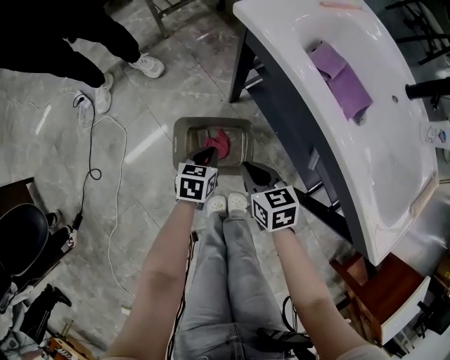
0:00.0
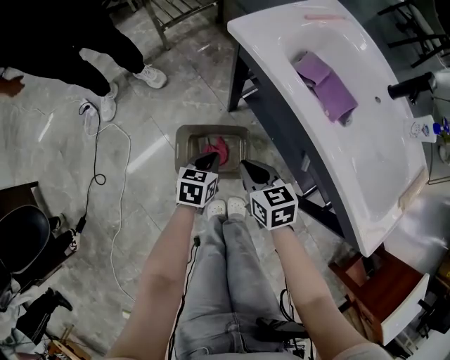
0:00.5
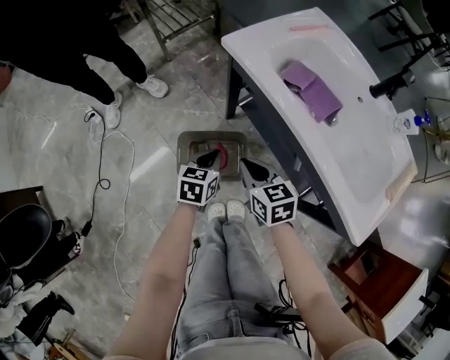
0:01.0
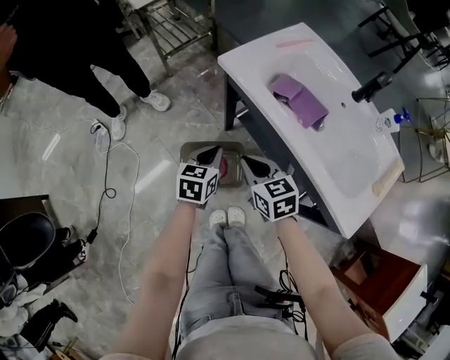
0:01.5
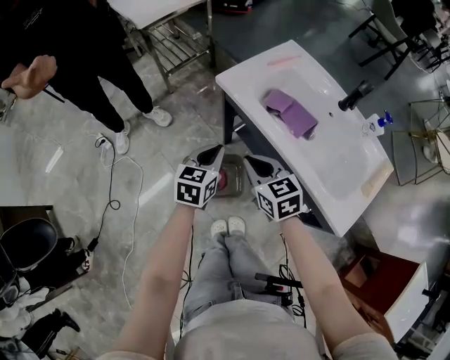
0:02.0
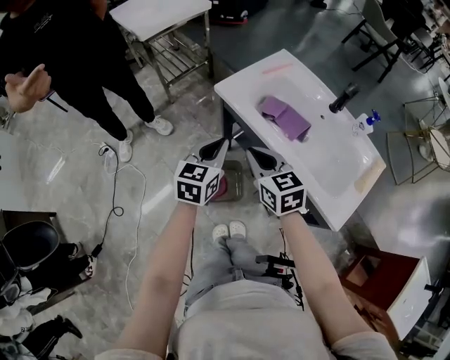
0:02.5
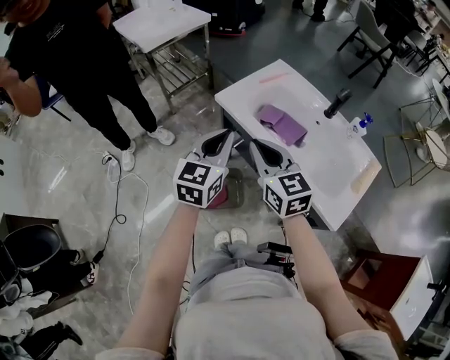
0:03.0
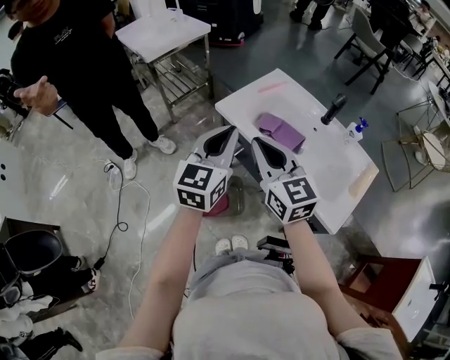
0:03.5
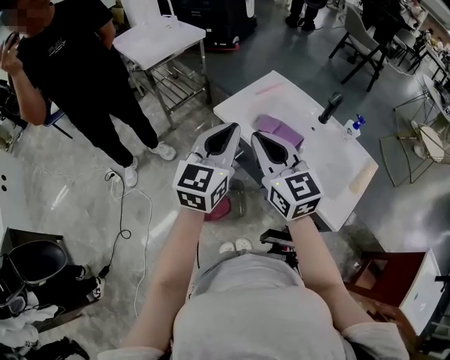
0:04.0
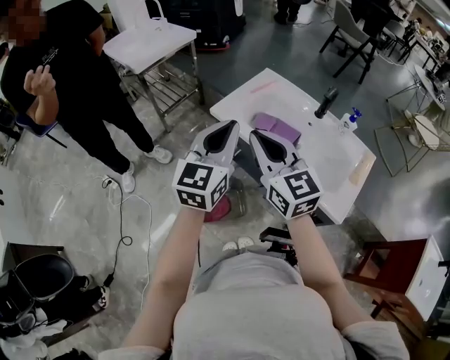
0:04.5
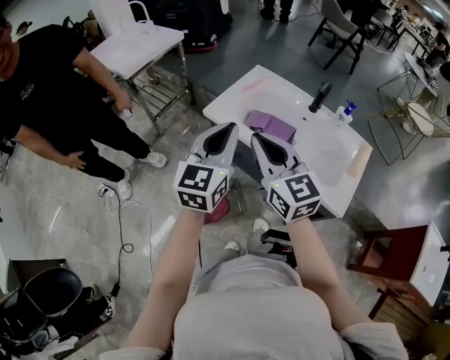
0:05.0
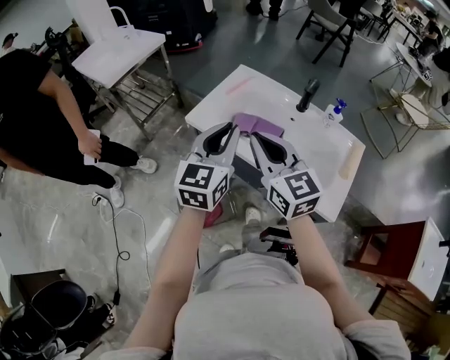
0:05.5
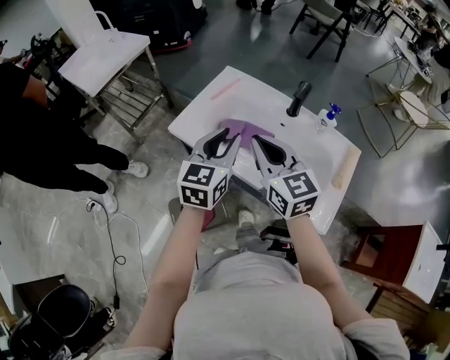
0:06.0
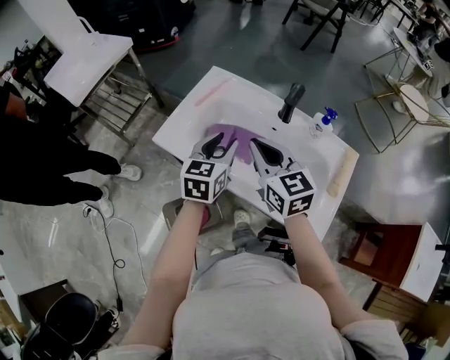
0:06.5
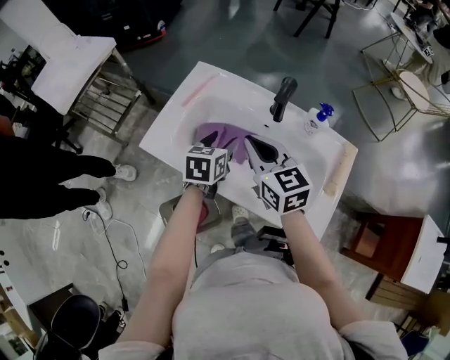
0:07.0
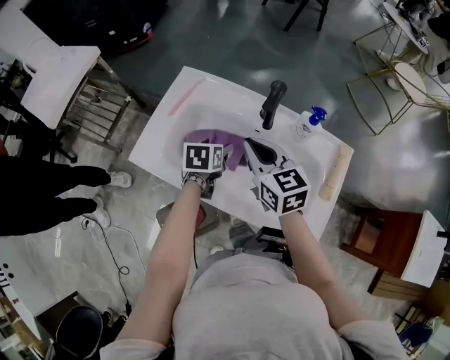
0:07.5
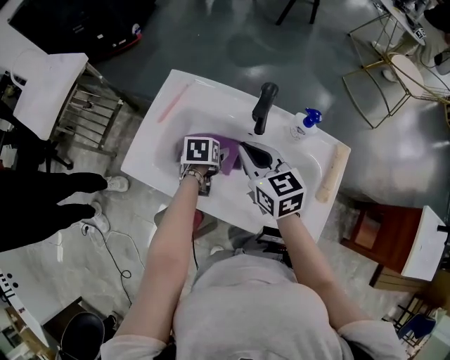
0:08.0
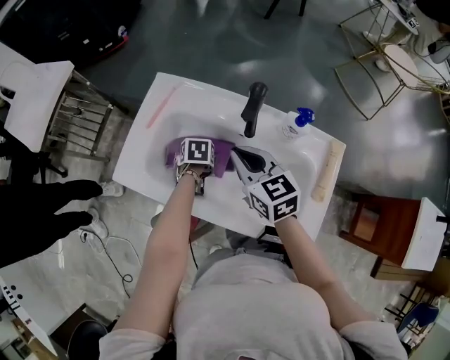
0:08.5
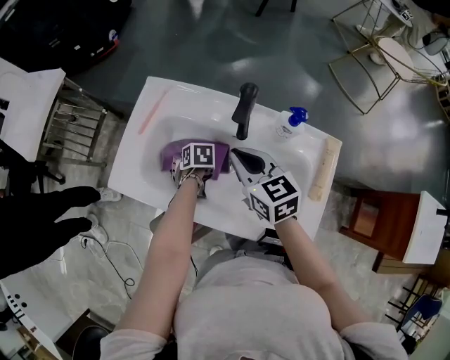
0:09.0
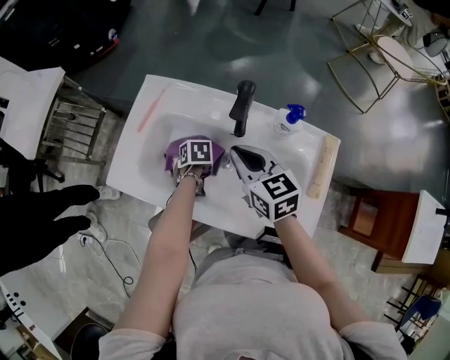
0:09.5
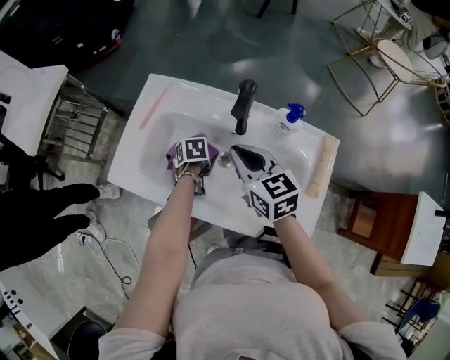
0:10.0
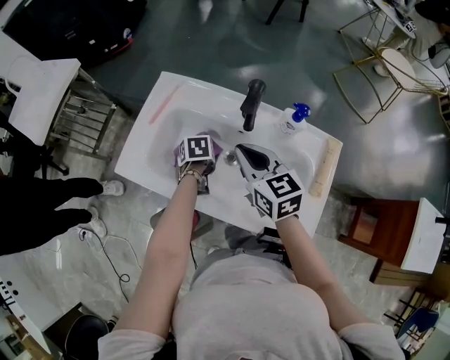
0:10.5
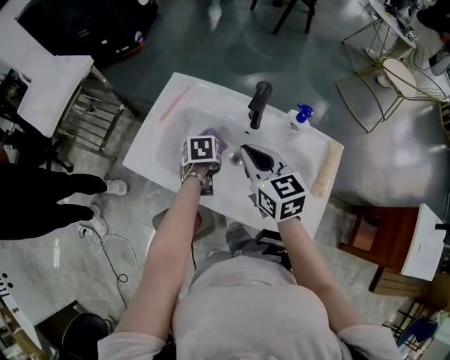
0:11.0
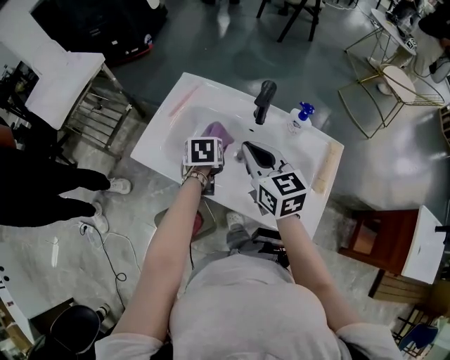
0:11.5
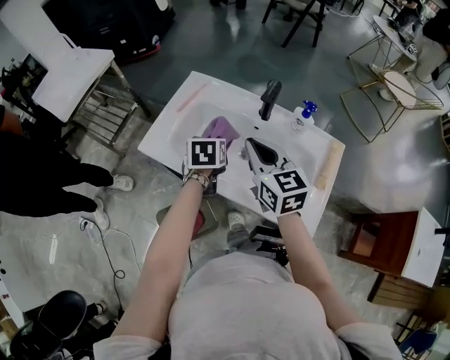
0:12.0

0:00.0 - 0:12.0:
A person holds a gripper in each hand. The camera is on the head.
0:00.0 - 0:02.0: Both grippers travel together upward, some 30 cm. The left gripper changes its angle by approximately 20 degrees.
0:02.0 - 0:04.0: The grippers both shift upward by approximately 25 cm. The left gripper rotates about 30 degrees; the right gripper rotates some 30 degrees.
0:04.0 - 0:06.0: The two grippers go approximately 15 cm to the right, forward and downward.
0:06.0 - 0:08.0: The right gripper heads forward, downward and to the right, covering roughly 20 cm; the left gripper goes roughly 30 cm downward and forward, points its fingers approximately 50 degrees further downward, and opens its fingers.
0:08.0 - 0:10.0: The left gripper heads downward, covering approximately 5 cm, and closes up.
0:10.0 - 0:12.0: The right gripper goes some 10 cm upward. The left gripper is displaced upward by some 20 cm, and changes its angle by approximately 30 degrees.

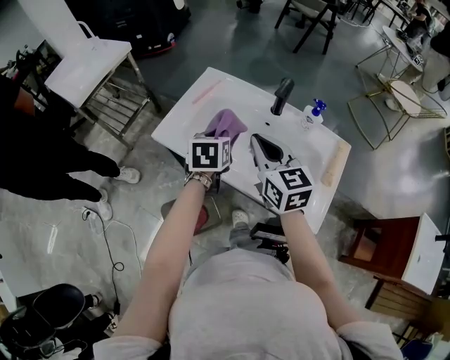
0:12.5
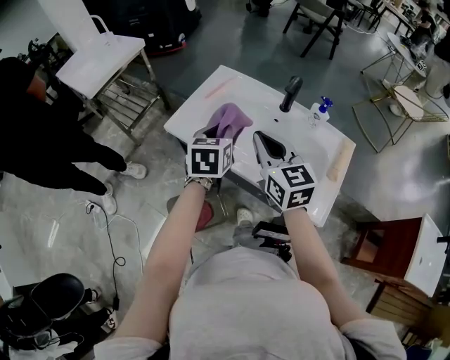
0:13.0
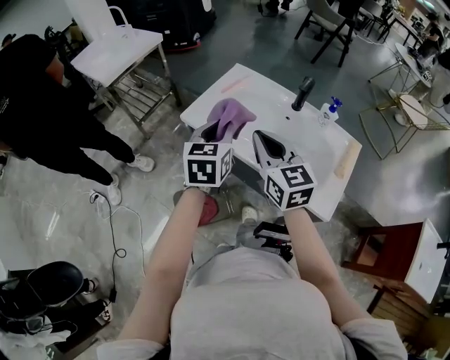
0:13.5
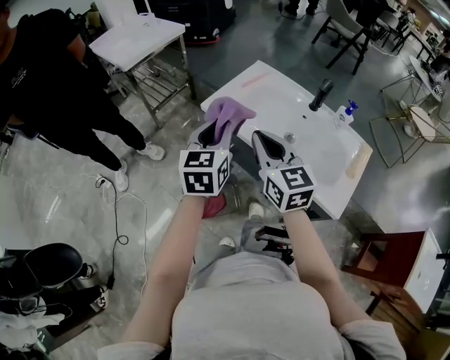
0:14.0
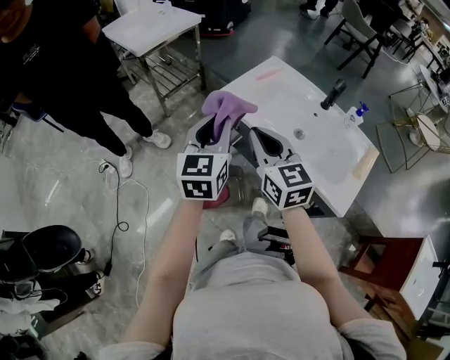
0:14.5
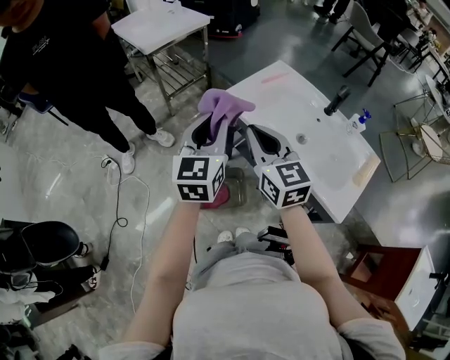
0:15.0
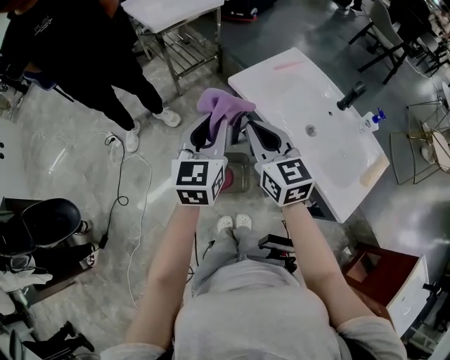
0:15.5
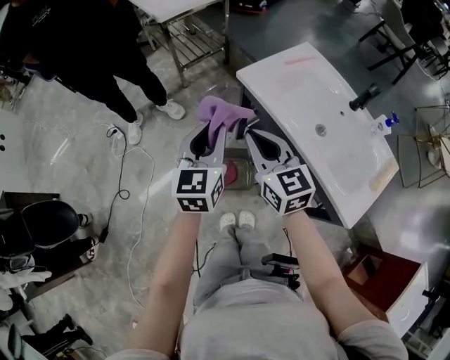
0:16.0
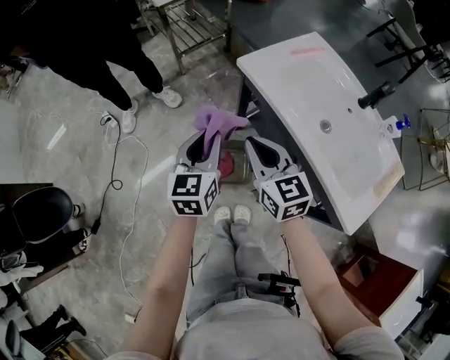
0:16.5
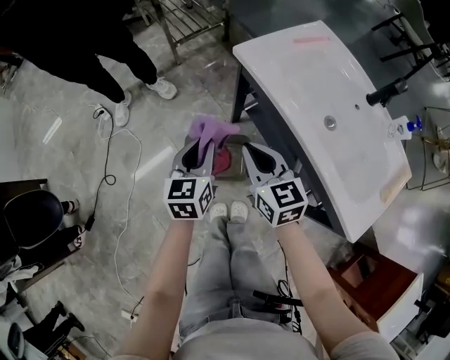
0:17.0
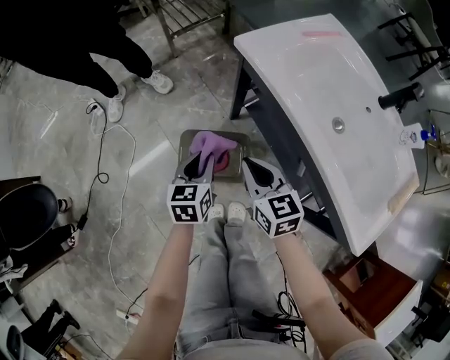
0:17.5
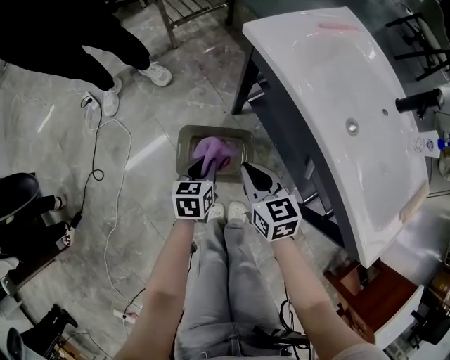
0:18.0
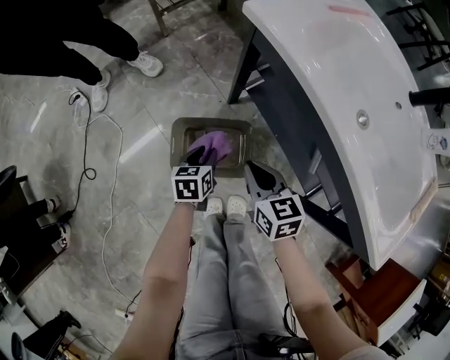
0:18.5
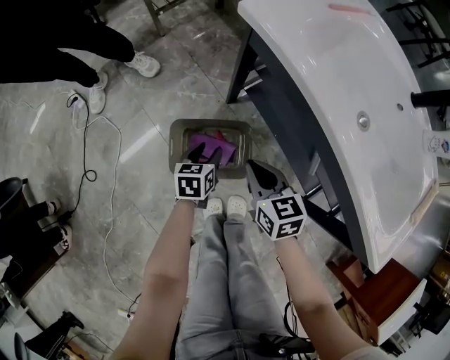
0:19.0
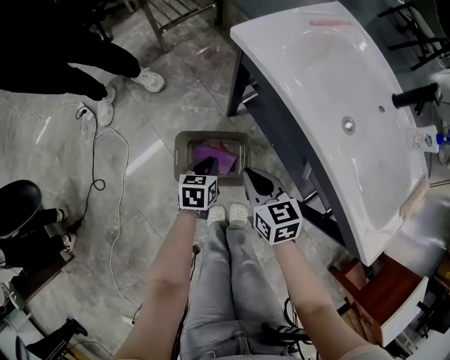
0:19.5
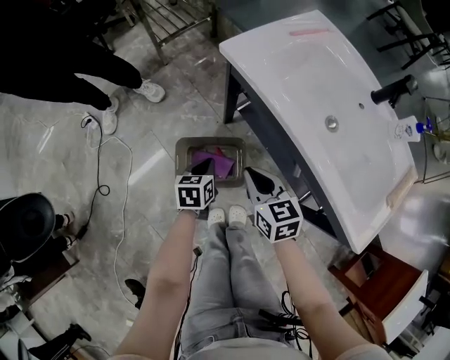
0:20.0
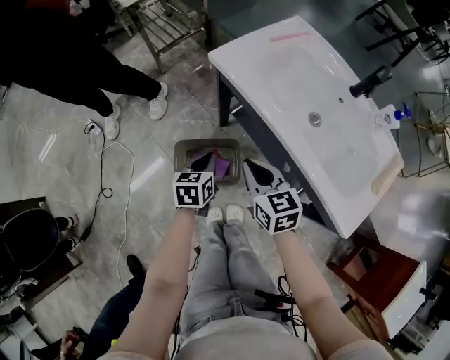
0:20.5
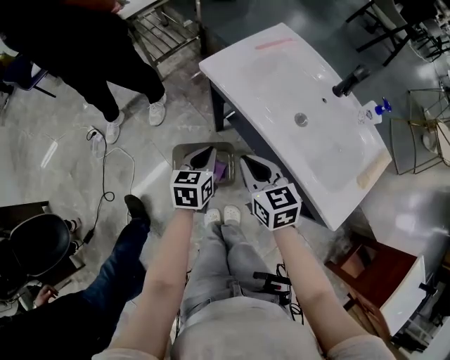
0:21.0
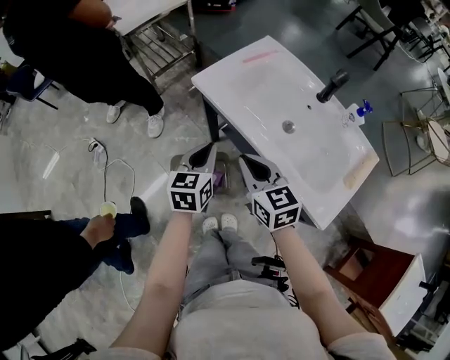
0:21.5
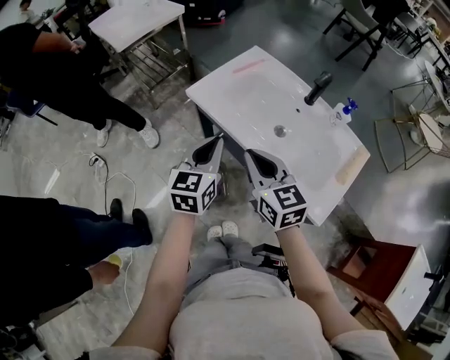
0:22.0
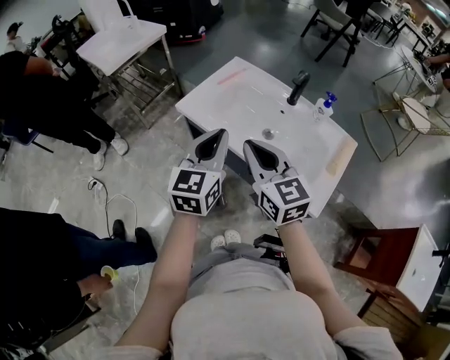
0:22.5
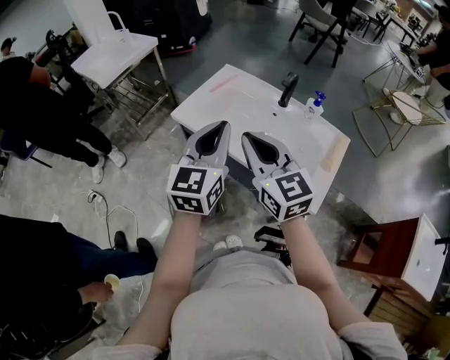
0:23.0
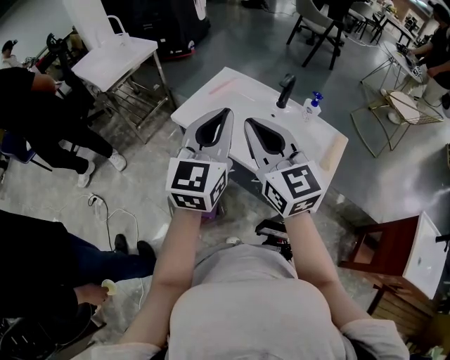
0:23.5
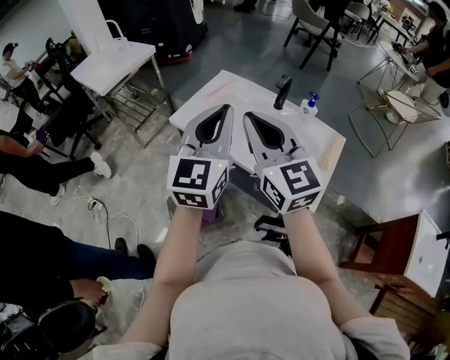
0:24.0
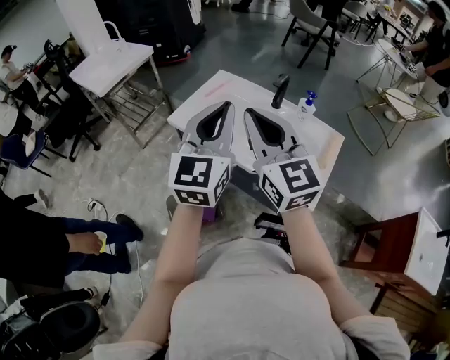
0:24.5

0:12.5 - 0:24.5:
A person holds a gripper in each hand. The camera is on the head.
0:12.5 - 0:14.5: The left gripper moves to the left, backward and upward, roughly 30 cm, and points its fingers about 30 degrees further upward. The right gripper travels to the left and backward by approximately 25 cm.
0:14.5 - 0:16.5: The grippers both shift downward by approximately 15 cm.
0:16.5 - 0:18.5: Both grippers travel together downward, about 35 cm. The right gripper turns by approximately 20 degrees; the left gripper turns by about 30 degrees.
0:18.5 - 0:20.5: Both grippers move upward, approximately 20 cm.
0:20.5 - 0:22.5: Both grippers move upward, approximately 30 cm. The right gripper swivels roughly 20 degrees; the left gripper tilts its fingers about 30 degrees upward.
0:22.5 - 0:24.5: The two grippers go some 15 cm upward.

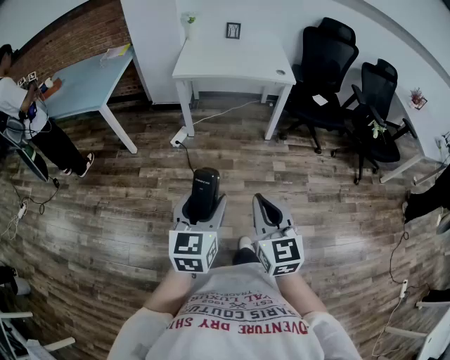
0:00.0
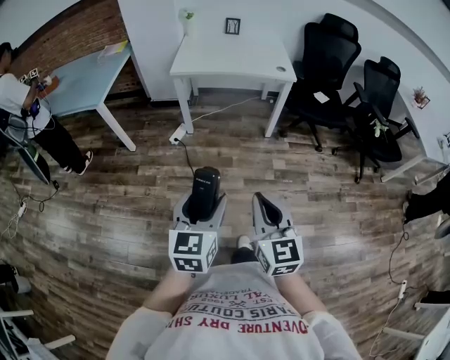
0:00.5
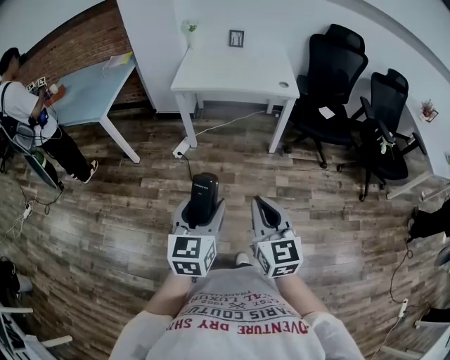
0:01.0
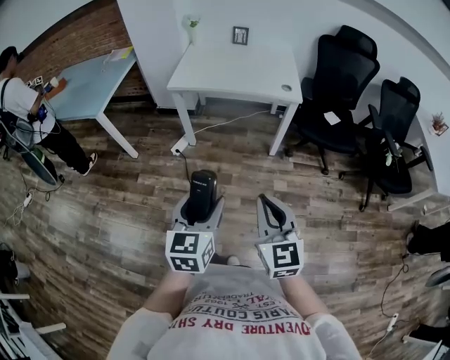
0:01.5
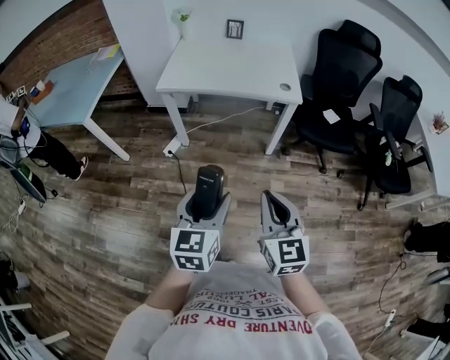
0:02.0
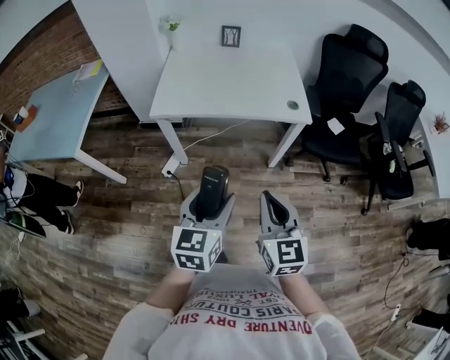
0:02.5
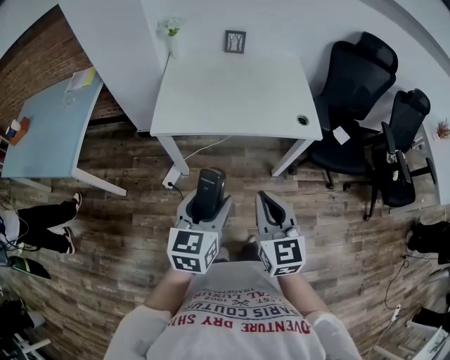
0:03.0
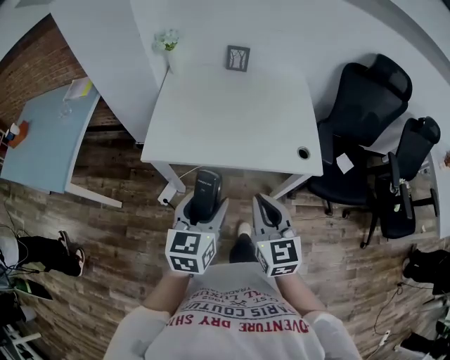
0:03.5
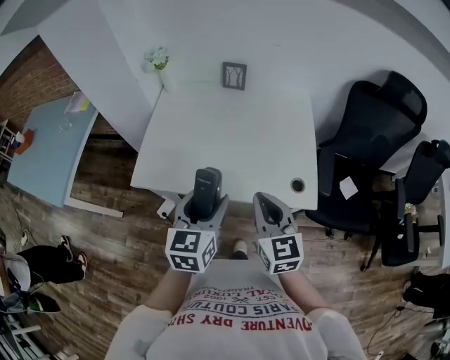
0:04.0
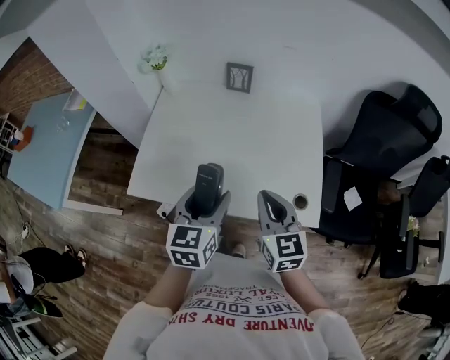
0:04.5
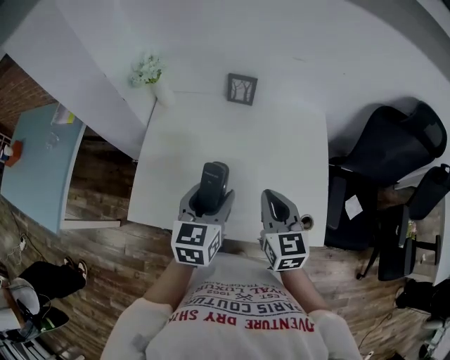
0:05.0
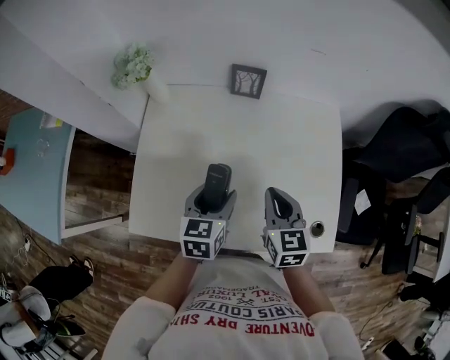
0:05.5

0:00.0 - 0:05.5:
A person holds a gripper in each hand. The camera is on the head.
0:00.0 - 0:02.0: Both grippers move forward and to the right, some 30 cm.
0:02.0 - 0:03.5: The pair of grippers is taken forward, roughly 40 cm.
0:03.5 - 0:05.5: Both grippers move forward, approximately 40 cm.
